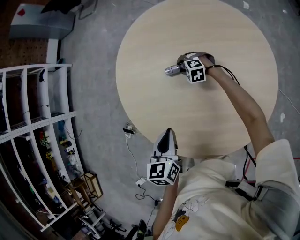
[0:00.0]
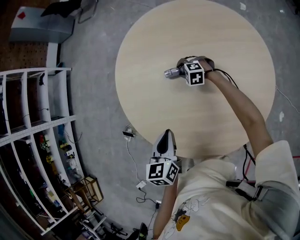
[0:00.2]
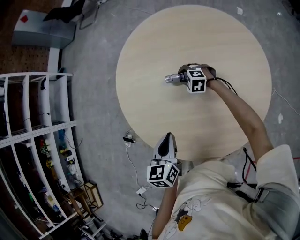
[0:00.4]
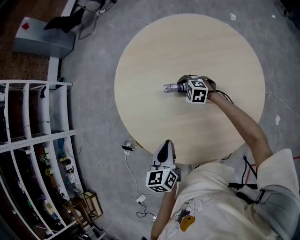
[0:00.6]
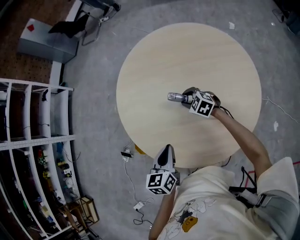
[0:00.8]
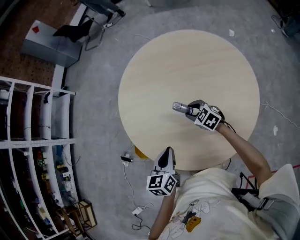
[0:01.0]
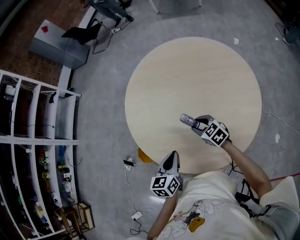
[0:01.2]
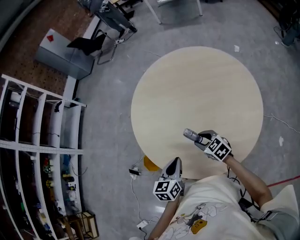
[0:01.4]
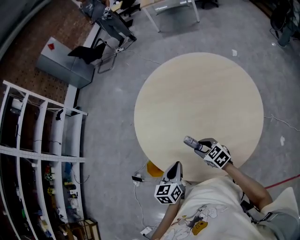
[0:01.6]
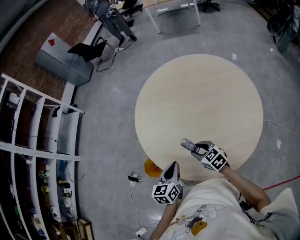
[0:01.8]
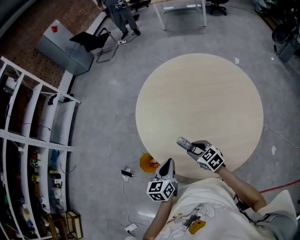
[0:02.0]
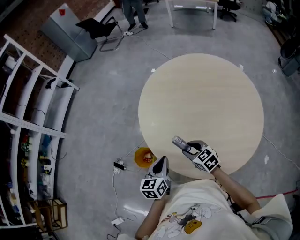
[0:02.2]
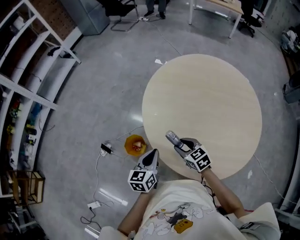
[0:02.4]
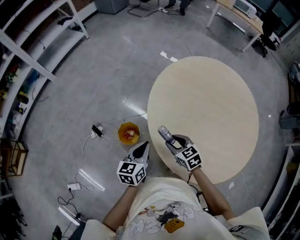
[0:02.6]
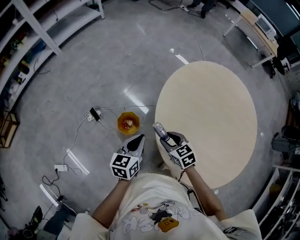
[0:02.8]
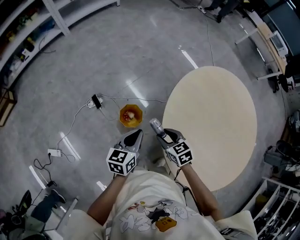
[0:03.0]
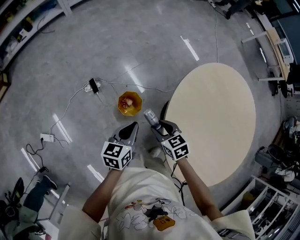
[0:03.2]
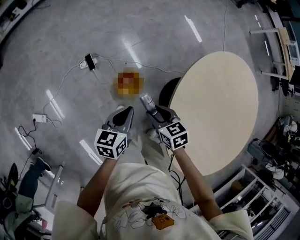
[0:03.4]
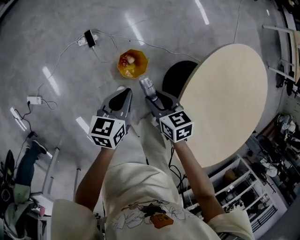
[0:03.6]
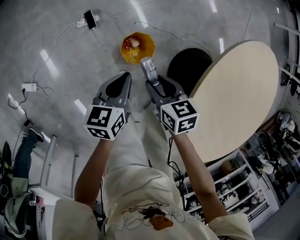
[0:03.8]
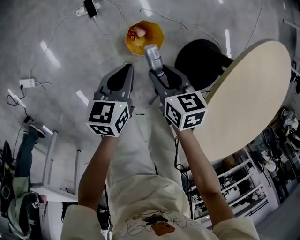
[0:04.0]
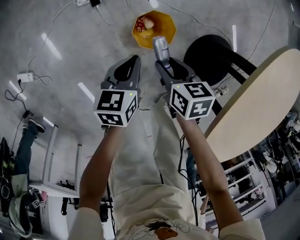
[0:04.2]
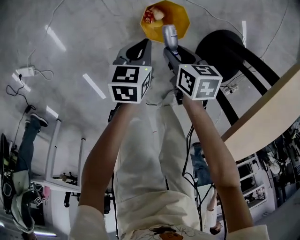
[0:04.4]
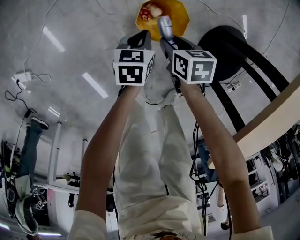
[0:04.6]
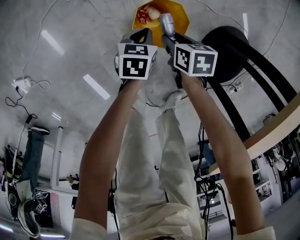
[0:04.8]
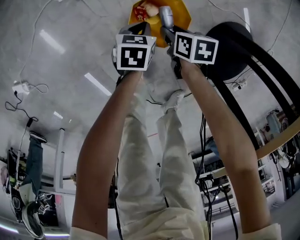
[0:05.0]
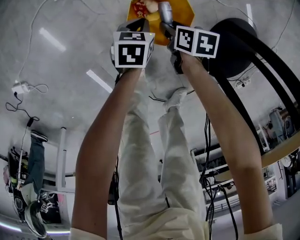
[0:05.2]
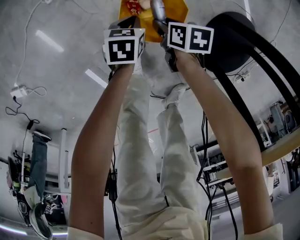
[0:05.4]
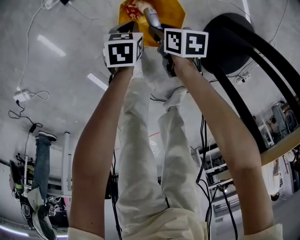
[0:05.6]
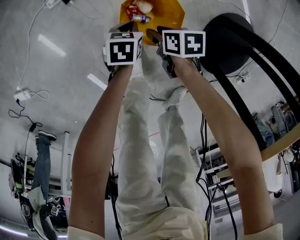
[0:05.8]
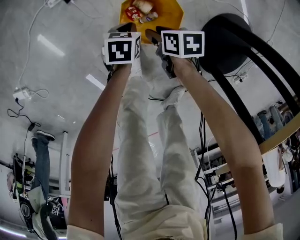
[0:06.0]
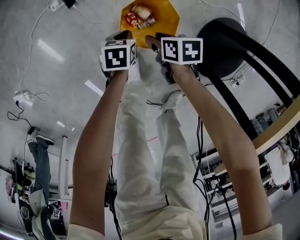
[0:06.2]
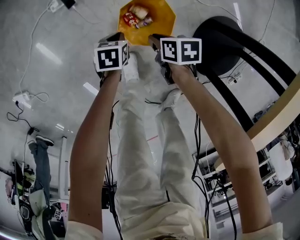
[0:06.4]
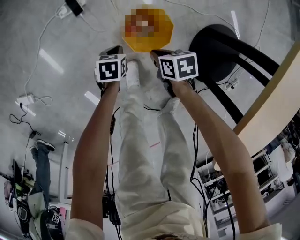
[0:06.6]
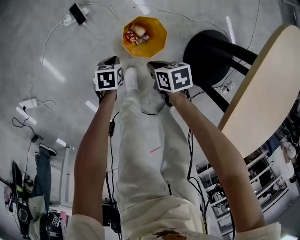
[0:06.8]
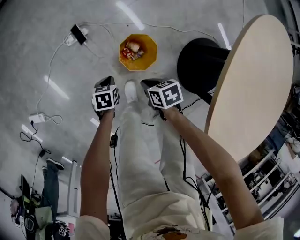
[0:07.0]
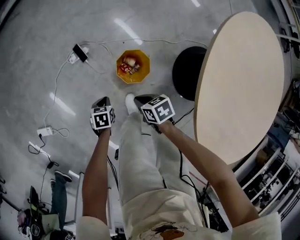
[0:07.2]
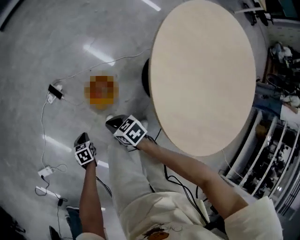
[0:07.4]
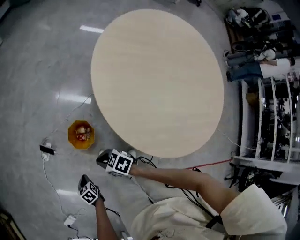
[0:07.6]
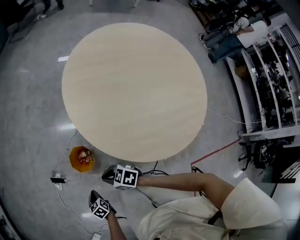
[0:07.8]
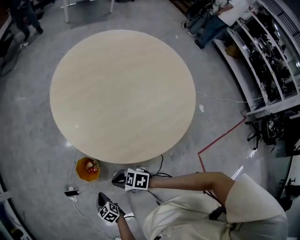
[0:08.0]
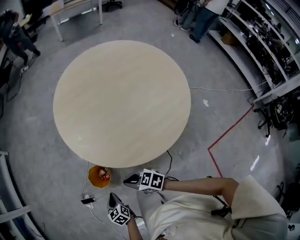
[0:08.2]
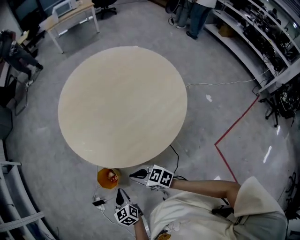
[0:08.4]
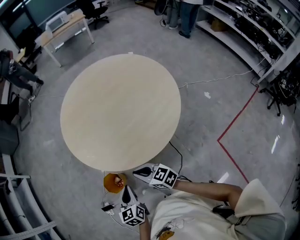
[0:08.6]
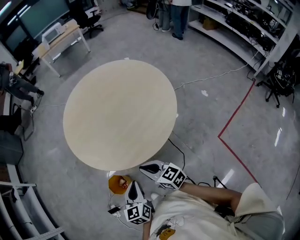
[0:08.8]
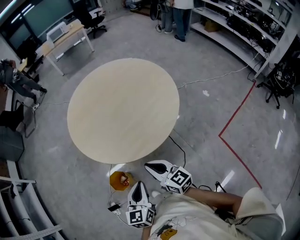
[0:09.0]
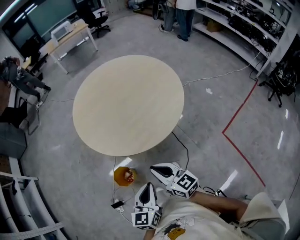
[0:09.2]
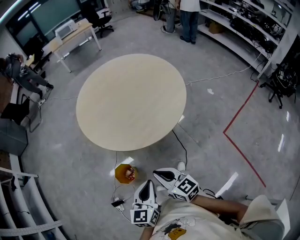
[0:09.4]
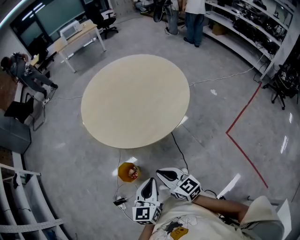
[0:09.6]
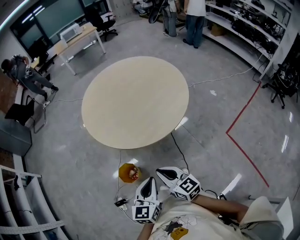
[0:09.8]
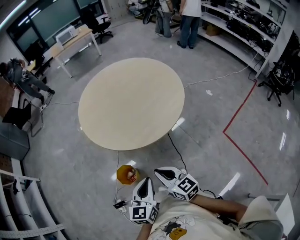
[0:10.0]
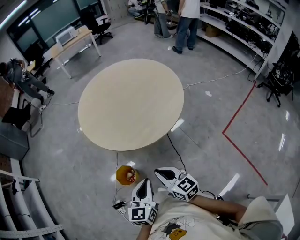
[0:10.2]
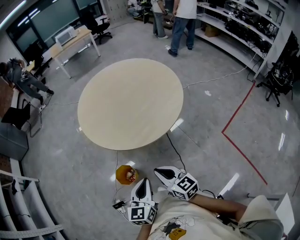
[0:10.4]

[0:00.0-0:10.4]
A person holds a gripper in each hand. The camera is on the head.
0:00.0 to 0:01.4: The right gripper is displaced backward and upward by approximately 30 cm, and rotates around the line of its fingers by roughly 50 degrees, clockwise from behind. Meanwhile the left gripper shifts about 10 cm backward.
0:01.4 to 0:03.0: The left gripper ends up roughly 35 cm from where it was, and rotates some 30 degrees; the right gripper moves roughly 35 cm, and swivels approximately 30 degrees.
0:03.0 to 0:04.4: Both grippers travel together downward, approximately 40 cm. The right gripper swivels about 30 degrees. Meanwhile the left gripper turns by some 30 degrees.
0:04.4 to 0:06.0: The grippers both shift downward by approximately 20 cm.
0:06.0 to 0:07.4: The right gripper is displaced upward by roughly 30 cm, and closes. The left gripper heads upward, covering roughly 20 cm.
0:07.4 to 0:09.0: The grippers both shift upward by about 50 cm. The right gripper tips its fingers upward by approximately 40 degrees; the left gripper tips its fingers upward by some 50 degrees.
0:09.0 to 0:10.4: Both grippers move backward and to the left, approximately 15 cm.

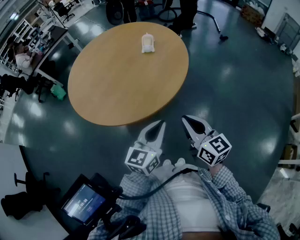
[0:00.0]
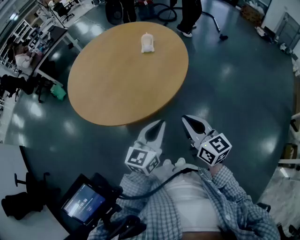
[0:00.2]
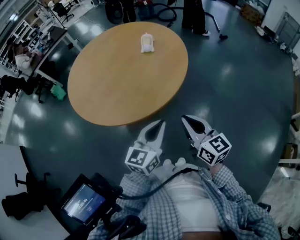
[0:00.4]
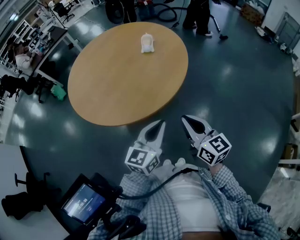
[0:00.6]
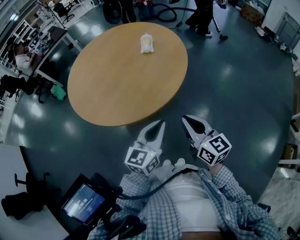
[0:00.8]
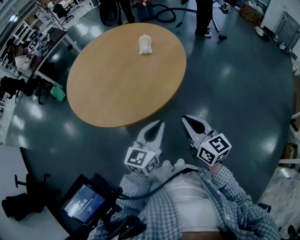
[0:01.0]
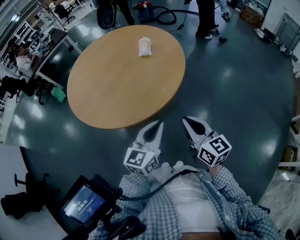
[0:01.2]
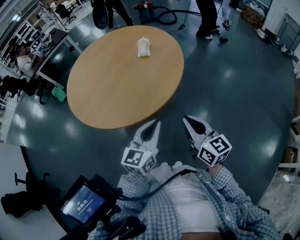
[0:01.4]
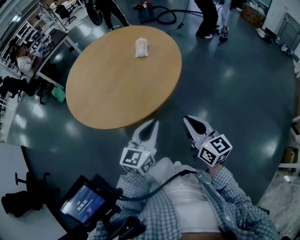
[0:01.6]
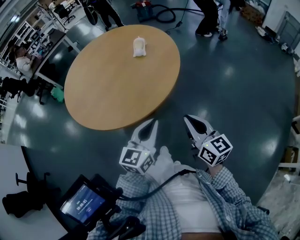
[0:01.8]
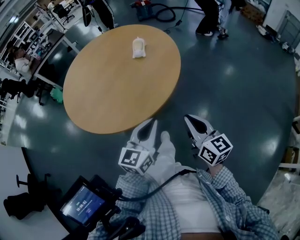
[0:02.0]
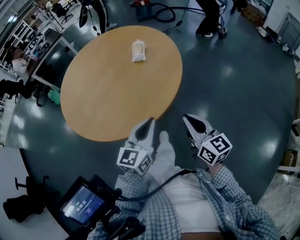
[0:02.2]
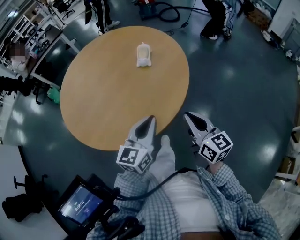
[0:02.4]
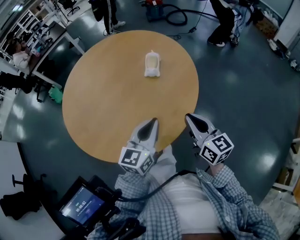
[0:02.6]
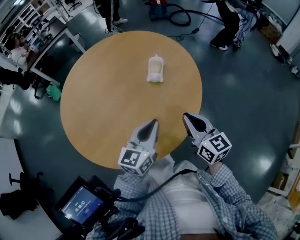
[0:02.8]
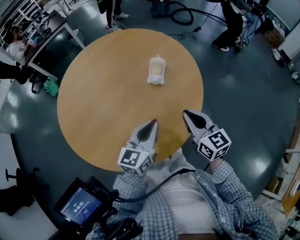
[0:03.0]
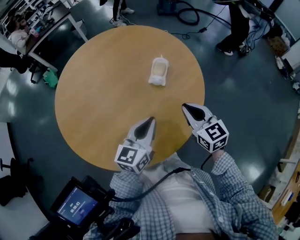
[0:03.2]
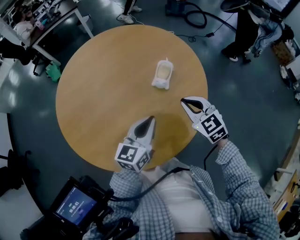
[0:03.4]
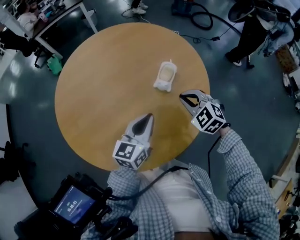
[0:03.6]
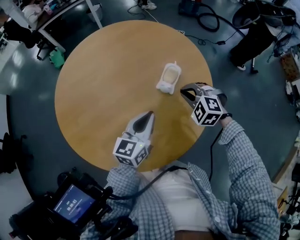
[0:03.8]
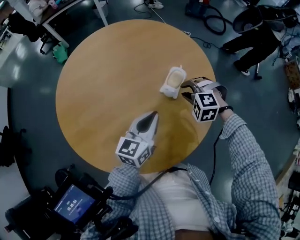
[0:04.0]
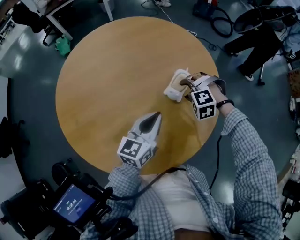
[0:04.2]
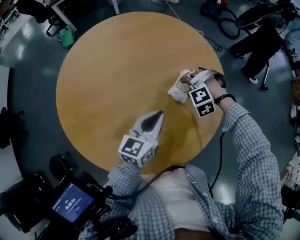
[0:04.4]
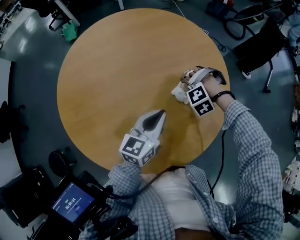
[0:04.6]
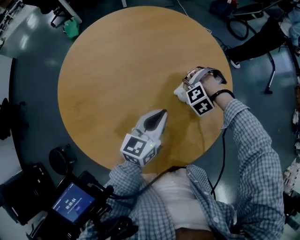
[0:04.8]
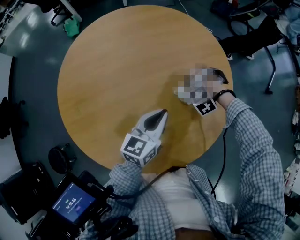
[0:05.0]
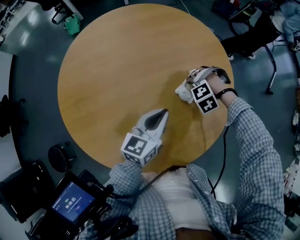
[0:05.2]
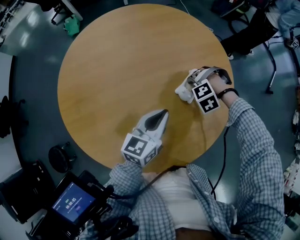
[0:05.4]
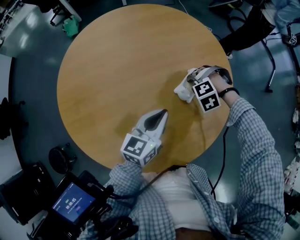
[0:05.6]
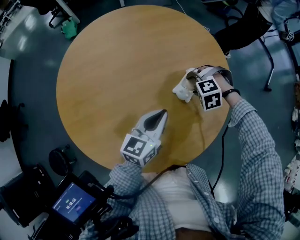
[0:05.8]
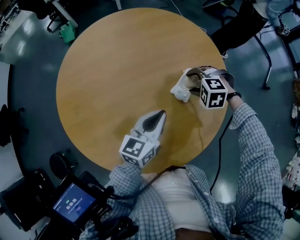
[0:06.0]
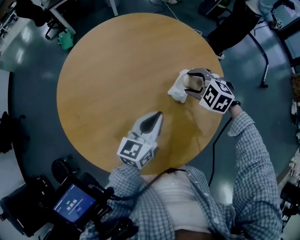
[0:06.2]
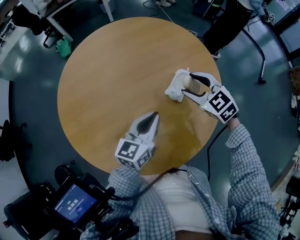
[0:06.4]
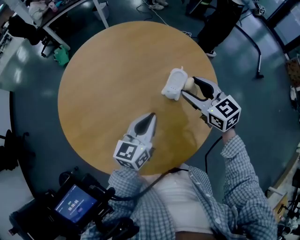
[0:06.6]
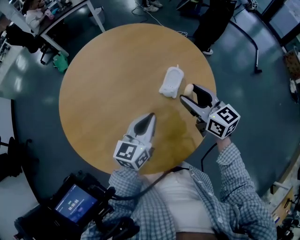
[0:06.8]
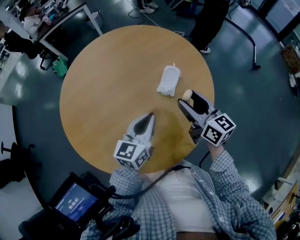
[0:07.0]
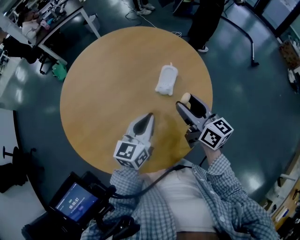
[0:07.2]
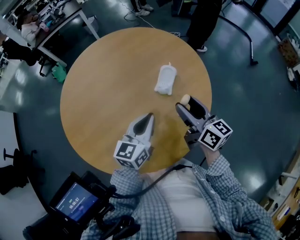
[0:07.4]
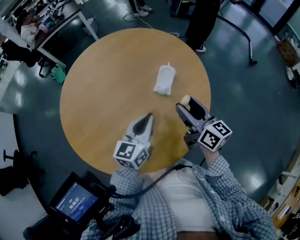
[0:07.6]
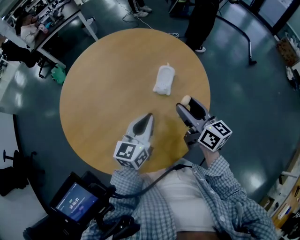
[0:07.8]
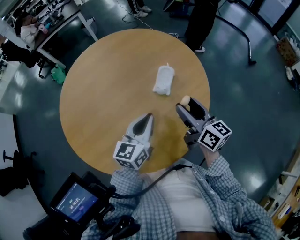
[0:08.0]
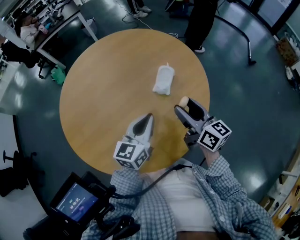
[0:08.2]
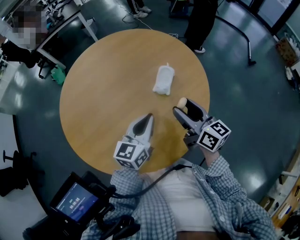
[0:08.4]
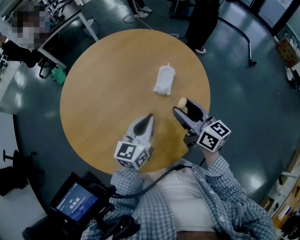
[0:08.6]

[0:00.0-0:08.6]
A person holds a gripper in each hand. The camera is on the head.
0:00.0 to 0:01.4: The grippers move only a little.
0:01.4 to 0:02.8: Both grippers travel together forward, about 25 cm.
0:02.8 to 0:04.4: The left gripper moves forward, roughly 15 cm, and rotates about 20 degrees; the right gripper goes roughly 30 cm forward and downward, twists some 110 degrees counterclockwise, seen from behind, and opens.
0:04.4 to 0:05.8: The grippers make only small movements.
0:05.8 to 0:07.2: The right gripper moves upward, roughly 15 cm, and points its fingers roughly 80 degrees further upward.
0:07.2 to 0:08.6: The grippers move only a little.

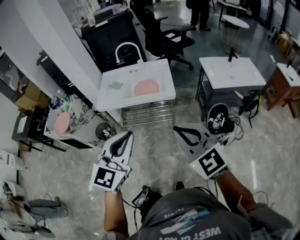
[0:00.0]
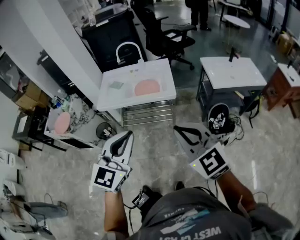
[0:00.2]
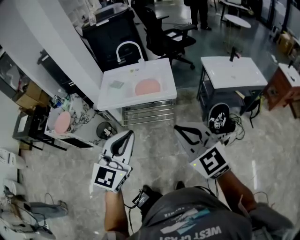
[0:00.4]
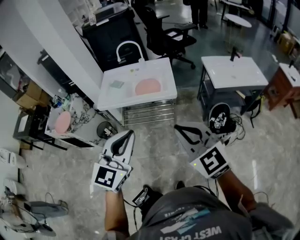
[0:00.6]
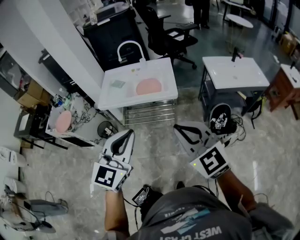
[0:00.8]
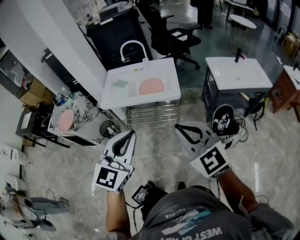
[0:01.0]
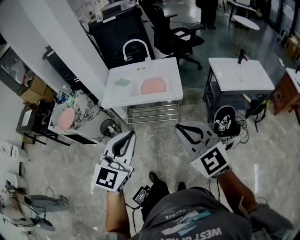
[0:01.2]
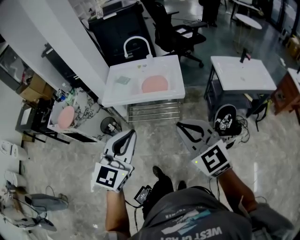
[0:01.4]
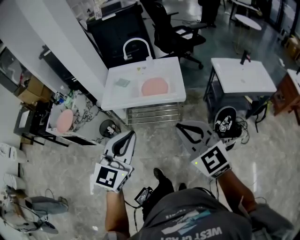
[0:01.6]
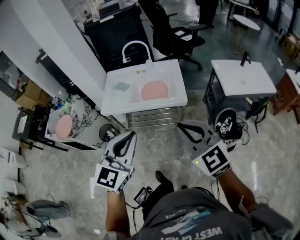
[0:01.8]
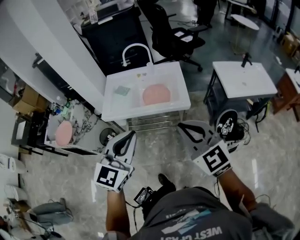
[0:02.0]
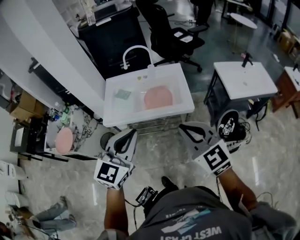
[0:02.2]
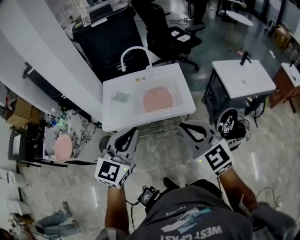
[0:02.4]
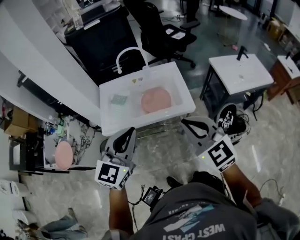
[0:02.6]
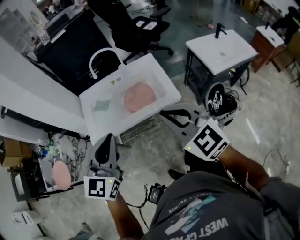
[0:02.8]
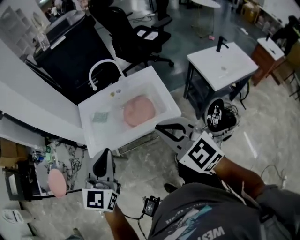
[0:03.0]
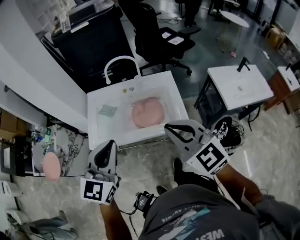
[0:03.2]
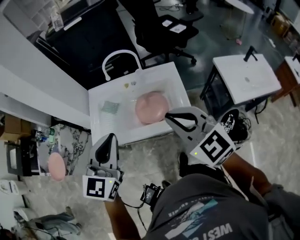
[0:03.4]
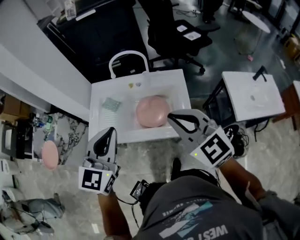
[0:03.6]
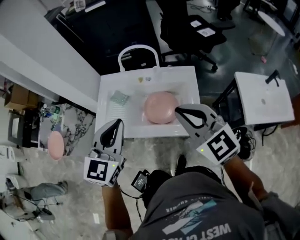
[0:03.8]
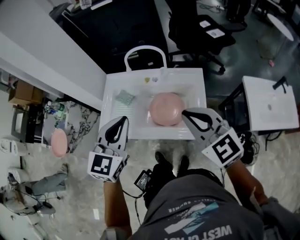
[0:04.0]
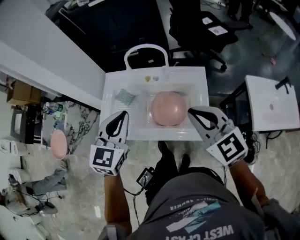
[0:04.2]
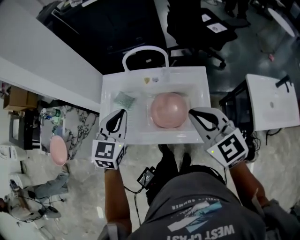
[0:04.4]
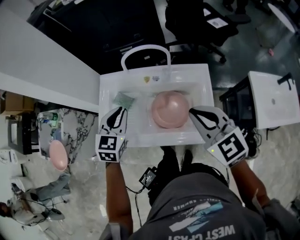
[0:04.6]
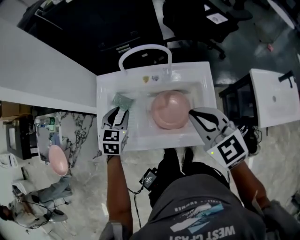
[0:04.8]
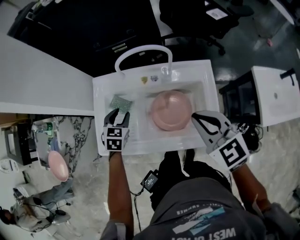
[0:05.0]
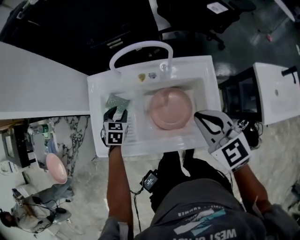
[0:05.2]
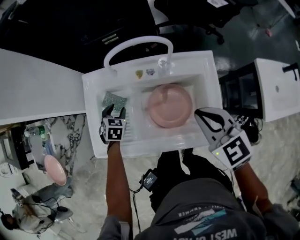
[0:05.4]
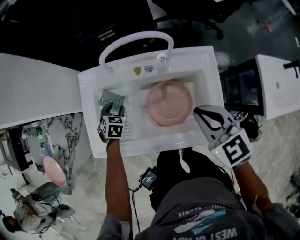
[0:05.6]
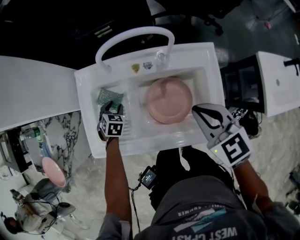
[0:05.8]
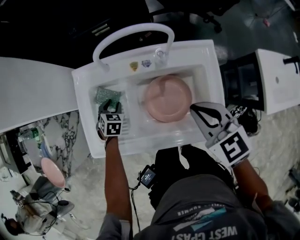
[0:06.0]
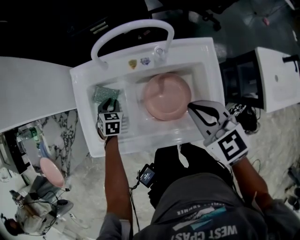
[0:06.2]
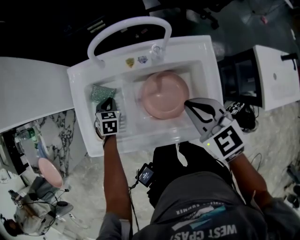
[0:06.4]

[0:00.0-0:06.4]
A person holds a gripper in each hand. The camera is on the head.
0:00.0 to 0:01.6: The grippers both shift forward by about 5 cm.
0:01.6 to 0:03.2: Both grippers travel together forward, roughly 30 cm.
0:03.2 to 0:04.8: The left gripper is displaced forward and downward by roughly 40 cm, angles its fingers downward, by approximately 30 degrees, and opens its fingers. The right gripper heads forward and downward, covering roughly 25 cm.
0:04.8 to 0:06.4: The right gripper is displaced downward by roughly 15 cm, while the left gripper travels downward by some 20 cm, and closes.
